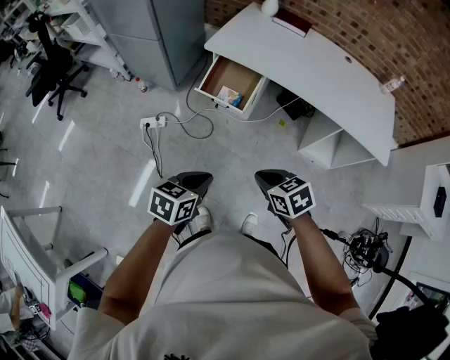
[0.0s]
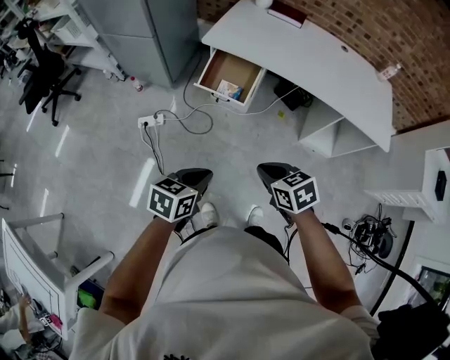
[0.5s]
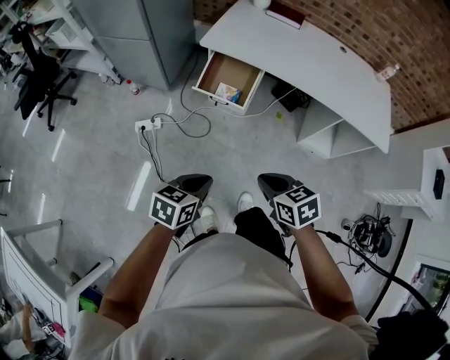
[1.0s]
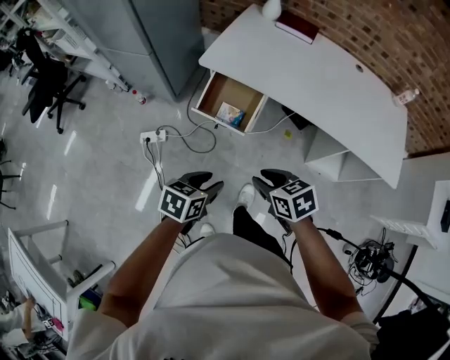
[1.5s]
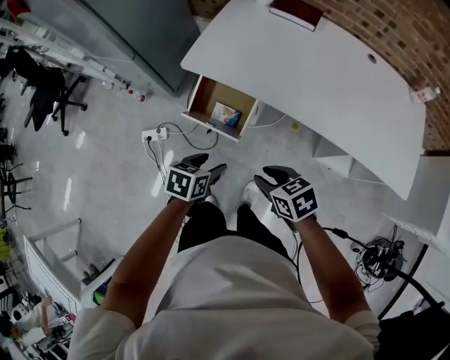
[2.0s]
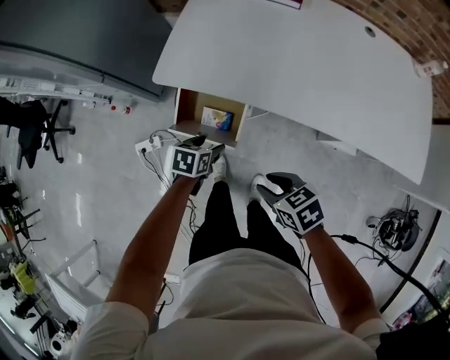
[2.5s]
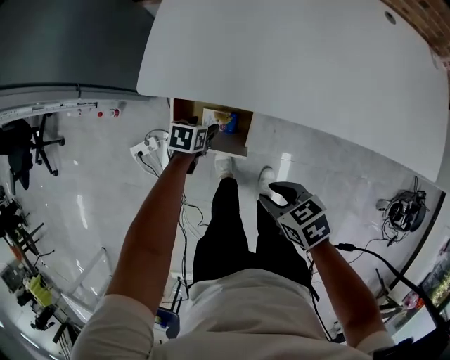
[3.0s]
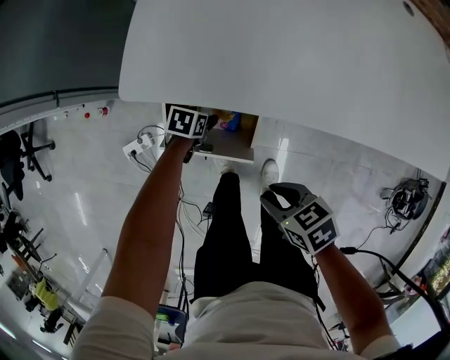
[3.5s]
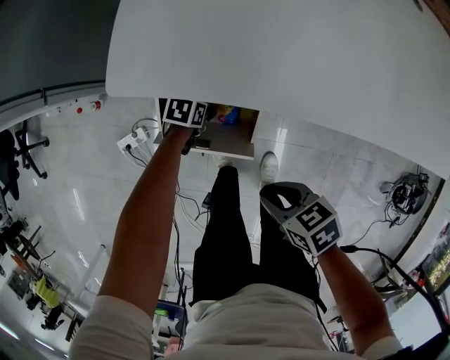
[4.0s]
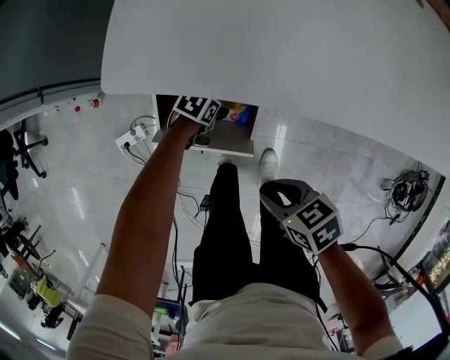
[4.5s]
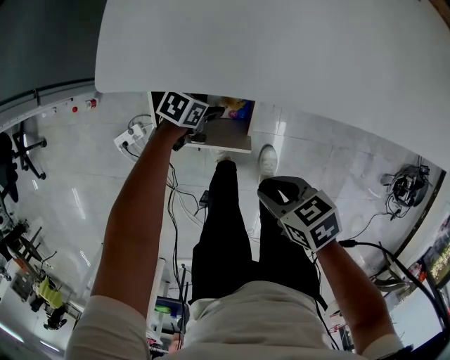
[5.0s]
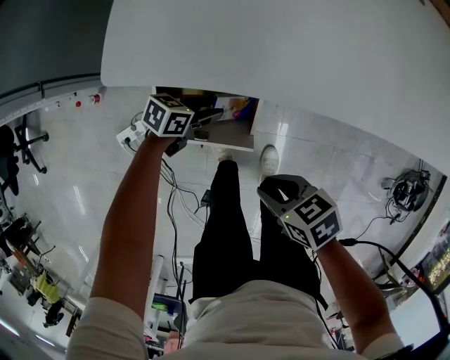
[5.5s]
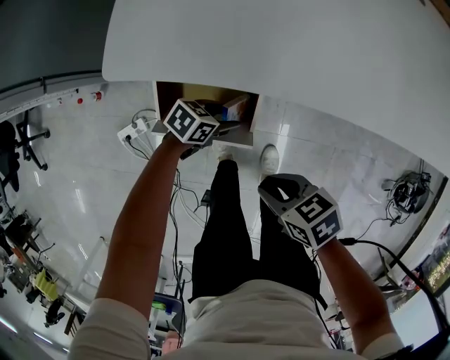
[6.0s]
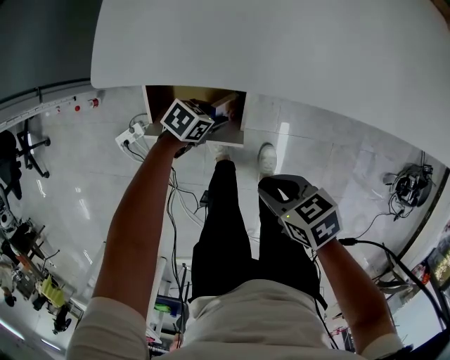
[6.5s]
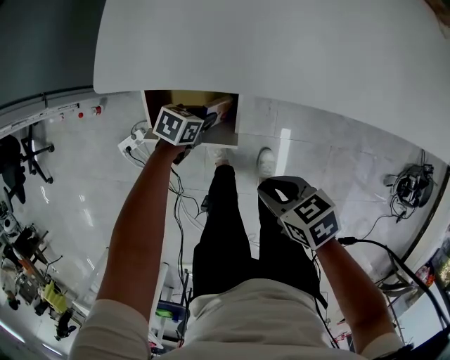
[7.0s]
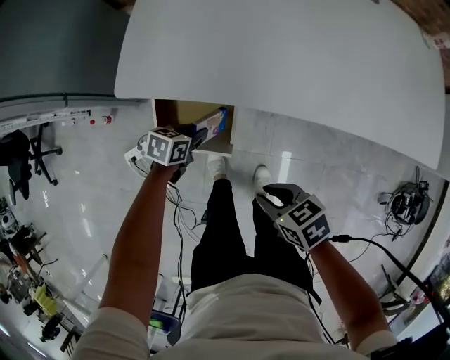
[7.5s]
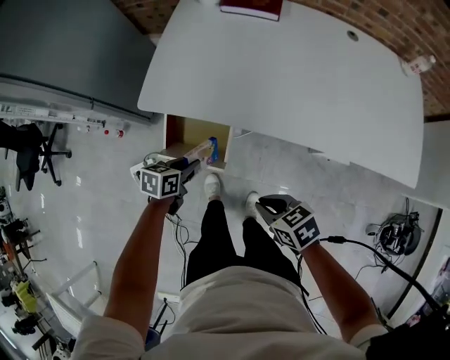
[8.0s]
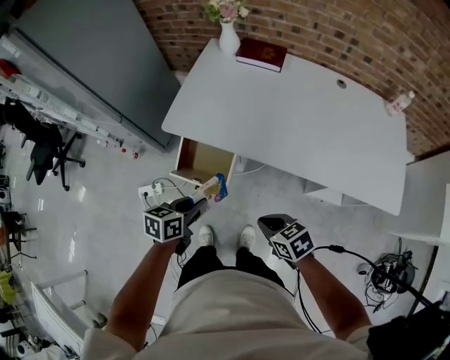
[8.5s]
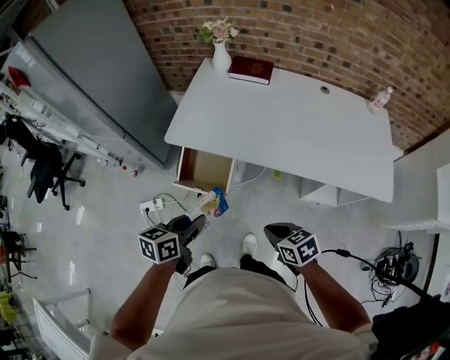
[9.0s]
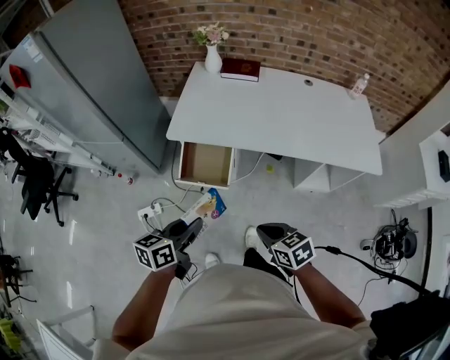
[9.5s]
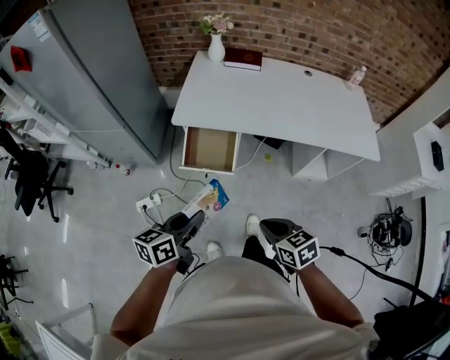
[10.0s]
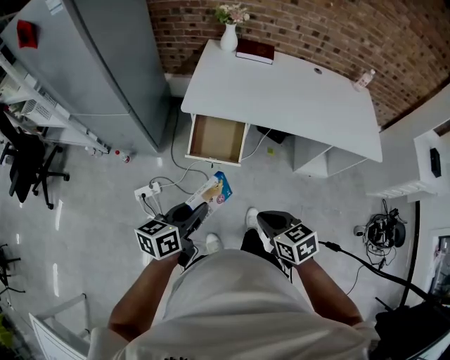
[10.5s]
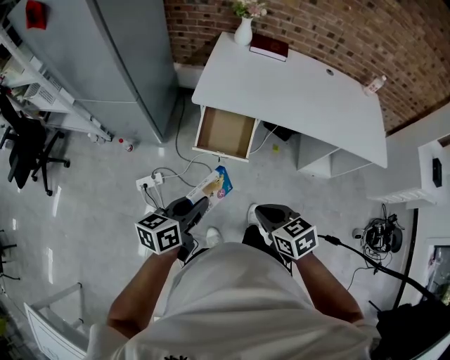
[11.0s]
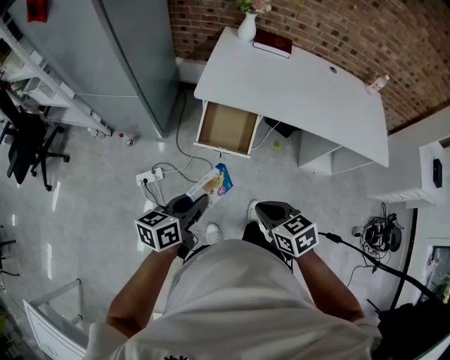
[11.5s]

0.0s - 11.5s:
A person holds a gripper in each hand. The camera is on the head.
0.0s - 2.0s: Both grippers move forward, approximately 30 cm. The left gripper opens its fingers. Meanwhile the right gripper opens up.
2.0s - 4.0s: The right gripper moves downward, about 20 cm, and turns by approximately 20 degrees; the left gripper goes some 40 cm downward, and turns by approximately 20 degrees.
4.0s - 6.0s: The left gripper shifts by some 15 cm, and changes its angle by about 30 degrees.
6.0s - 7.5s: The right gripper ends up roughly 10 cm from where it was, while the left gripper is displaced upward by roughly 10 cm, changes its angle by approximately 20 degrees, and closes up.
7.5s - 9.5s: The left gripper travels upward by about 40 cm, and changes its angle by roughly 40 degrees, while the right gripper heads upward, covering some 25 cm, and swivels some 20 degrees.
9.5s - 11.5s: The grippers both shift to the left by approximately 15 cm.

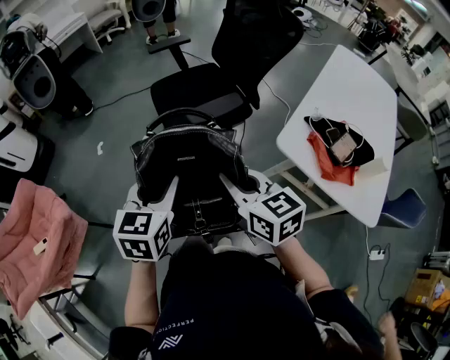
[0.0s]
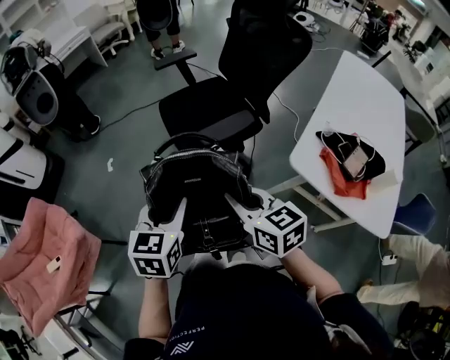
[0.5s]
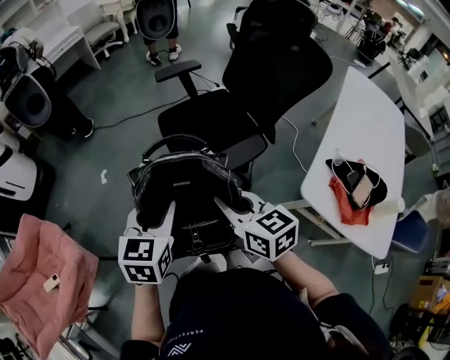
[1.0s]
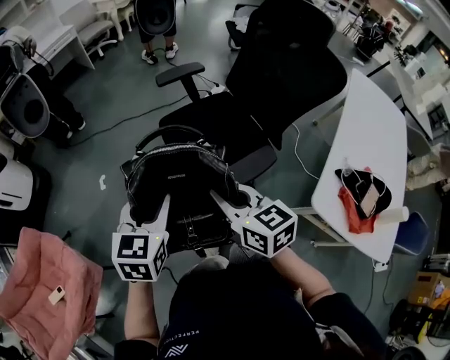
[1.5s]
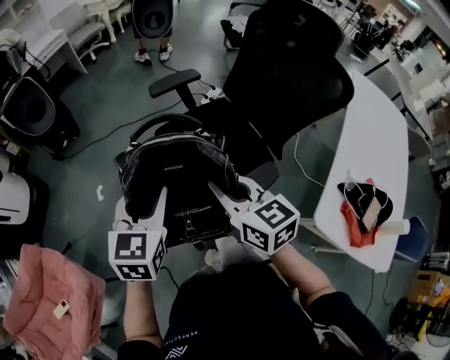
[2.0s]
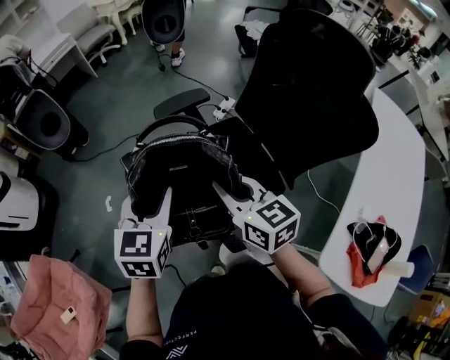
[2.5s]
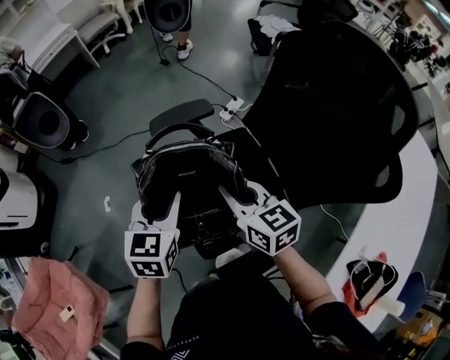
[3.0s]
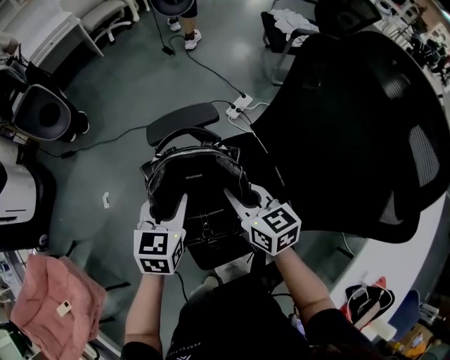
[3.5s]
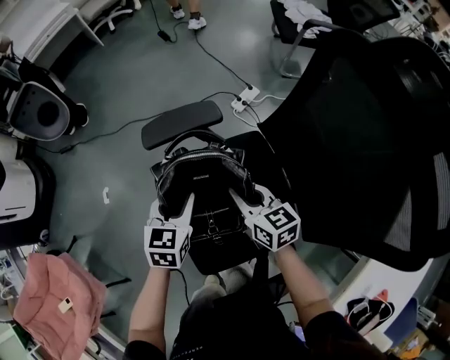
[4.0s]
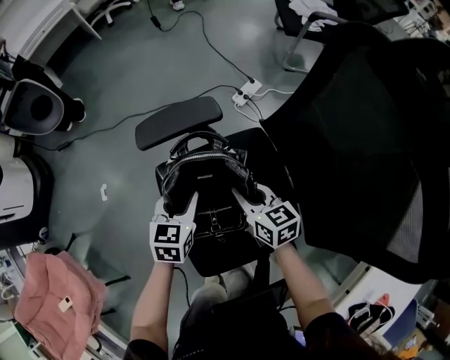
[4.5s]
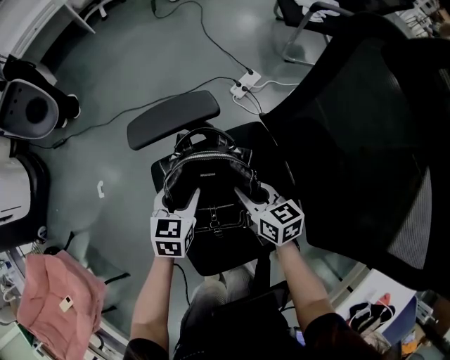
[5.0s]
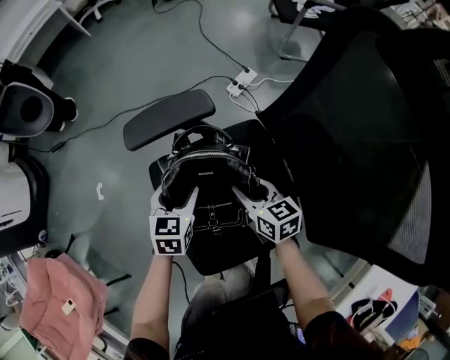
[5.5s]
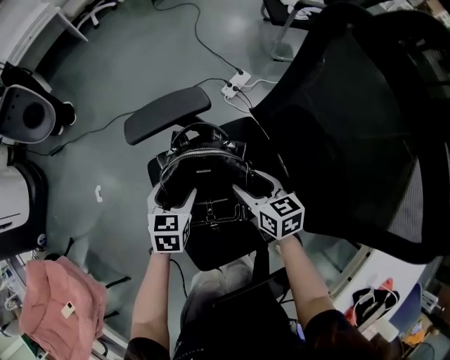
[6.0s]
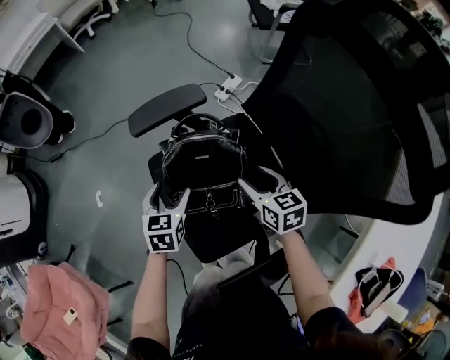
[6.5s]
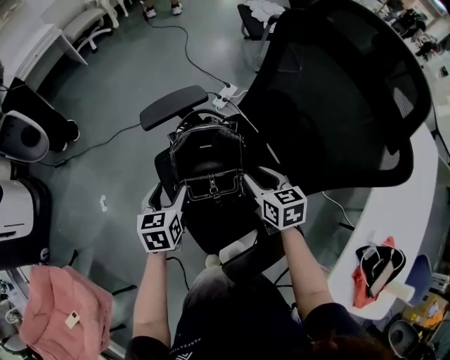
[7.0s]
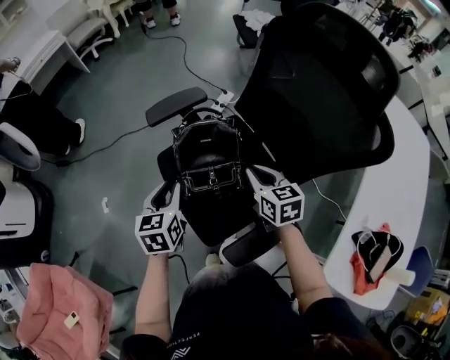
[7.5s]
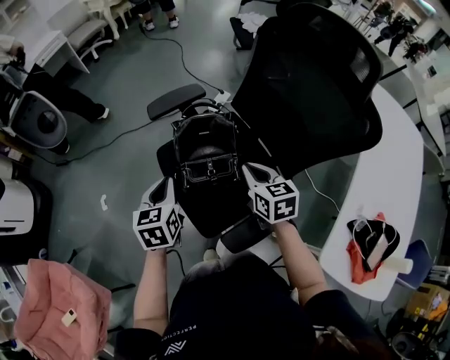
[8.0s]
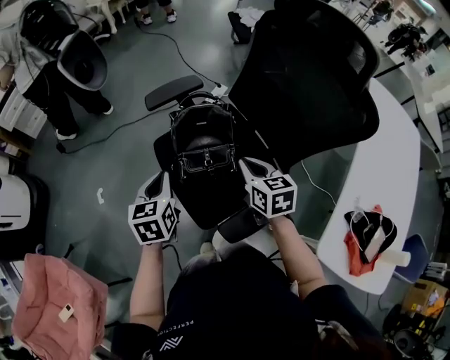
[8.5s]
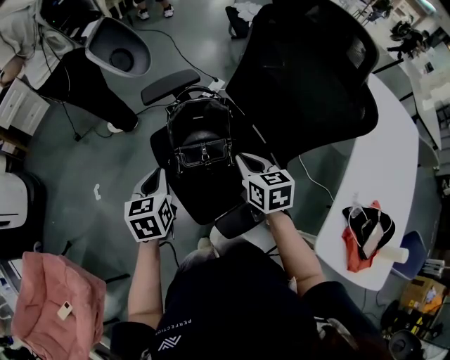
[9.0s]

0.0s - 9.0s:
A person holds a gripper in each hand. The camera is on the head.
0.0s - 2.0s: The two grippers go about 30 cm forward.
2.0s - 4.5s: Both grippers travel together forward, downward and to the right, some 40 cm.
4.5s - 7.0s: The left gripper is displaced backward, to the left and upward by about 10 cm, and opens its fingers. The right gripper is displaced backward and upward by about 10 cm, and opens its fingers.
7.0s - 9.0s: The grippers both shift backward and upward by about 10 cm. The left gripper closes up, while the right gripper closes up.

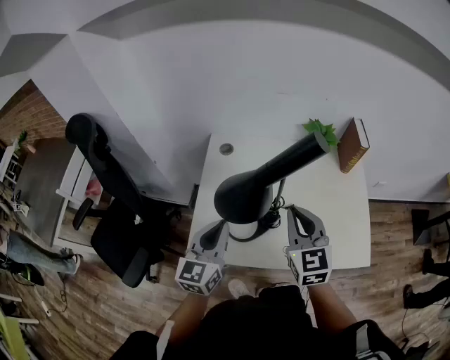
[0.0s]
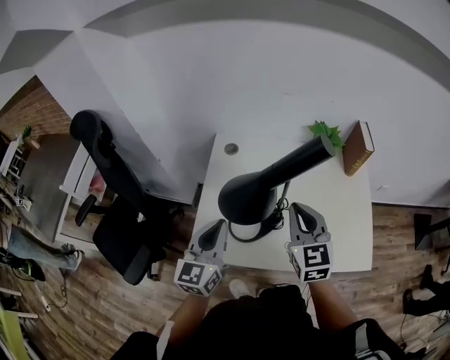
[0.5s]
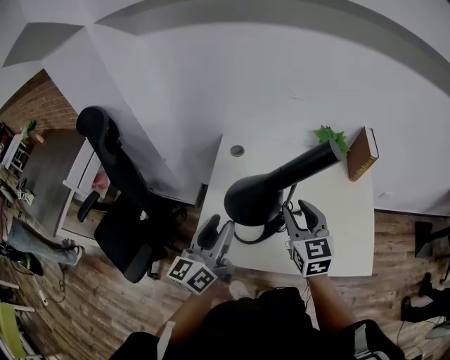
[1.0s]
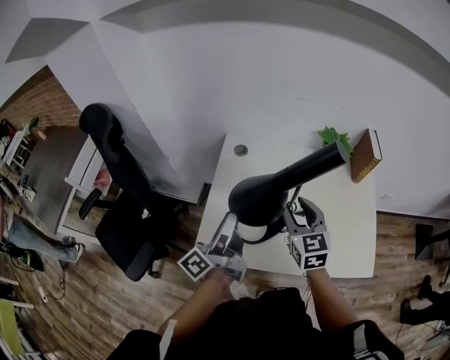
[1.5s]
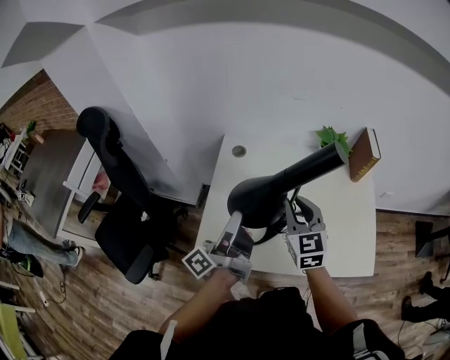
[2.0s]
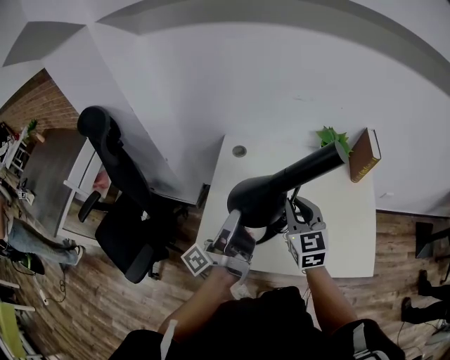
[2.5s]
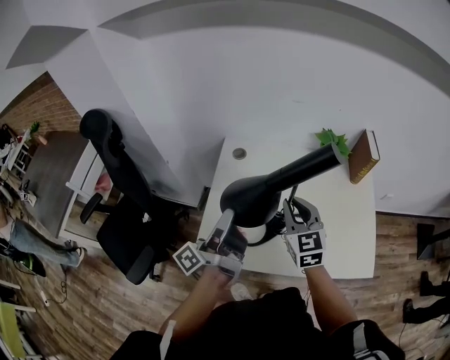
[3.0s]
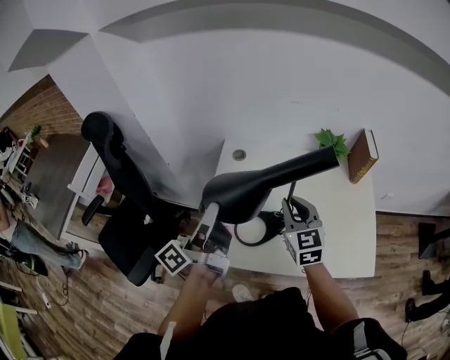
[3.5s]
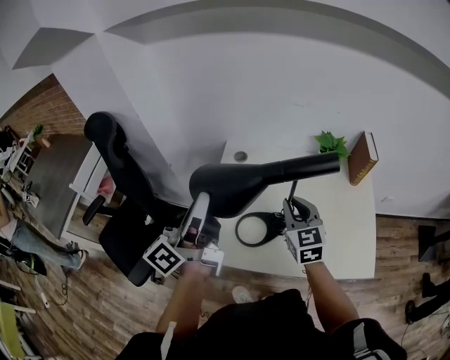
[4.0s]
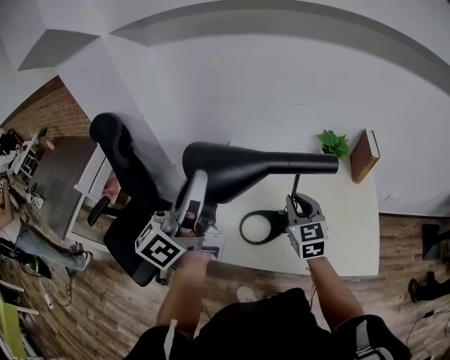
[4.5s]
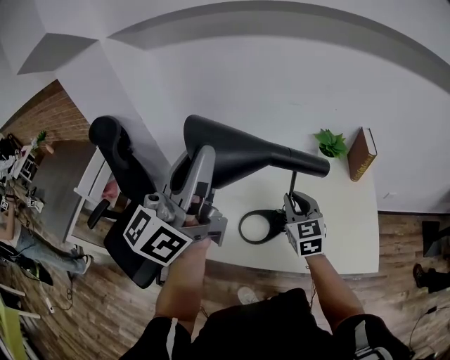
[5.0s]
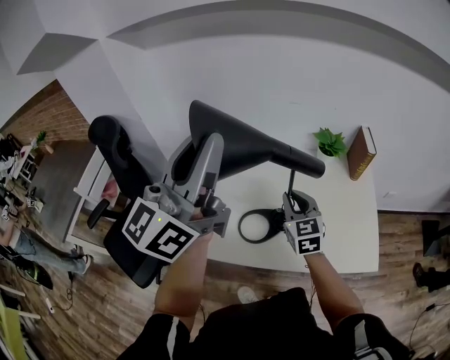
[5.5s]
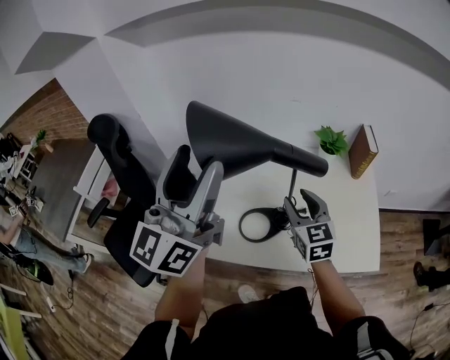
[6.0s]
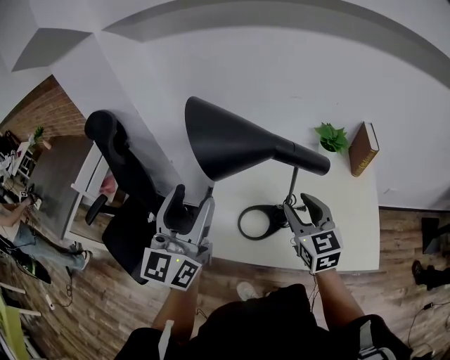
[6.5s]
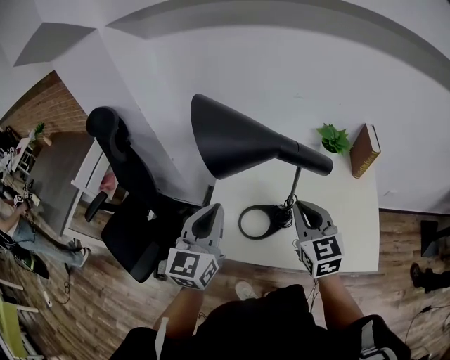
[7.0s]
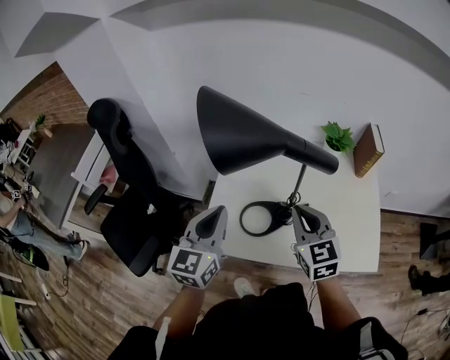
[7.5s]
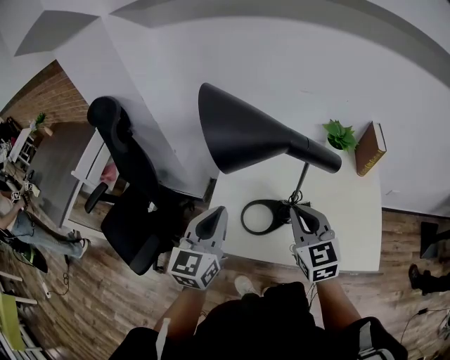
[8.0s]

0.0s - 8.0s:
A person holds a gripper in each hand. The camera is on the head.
0.0s - 2.0s: The left gripper rolls counterclockwise, seen from behind, by some 70 degrees, and opens its fingers. The right gripper travels forward by approximately 5 cm, and opens, then closes once more.
2.0s - 4.0s: The left gripper is displaced upward and to the left by some 15 cm, and swivels roughly 20 degrees.
4.0s - 6.0s: The left gripper shifts roughly 15 cm upward, twists approximately 50 degrees clockwise, seen from behind, and opens its fingers, while the right gripper opens its fingers.
6.0s - 8.0s: The left gripper moves downward, roughly 25 cm, tilts its fingers approximately 30 degrees downward, and closes; the right gripper moves about 5 cm, and closes up.
